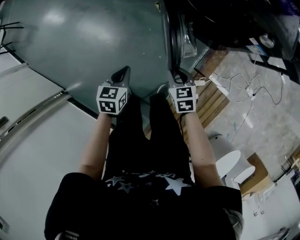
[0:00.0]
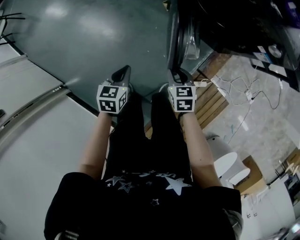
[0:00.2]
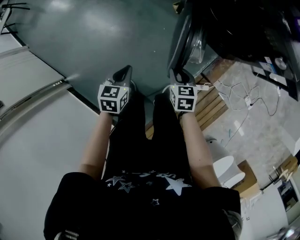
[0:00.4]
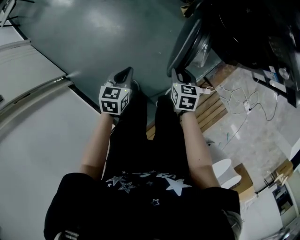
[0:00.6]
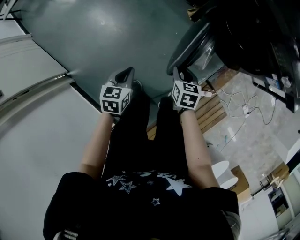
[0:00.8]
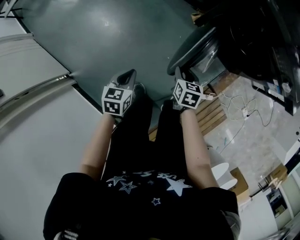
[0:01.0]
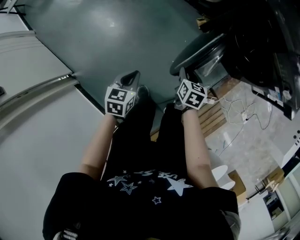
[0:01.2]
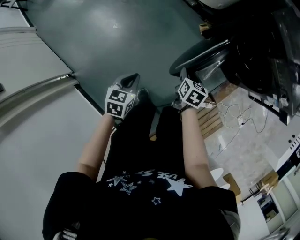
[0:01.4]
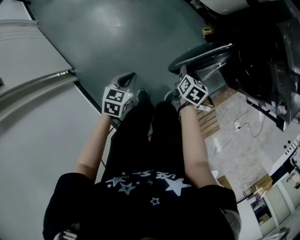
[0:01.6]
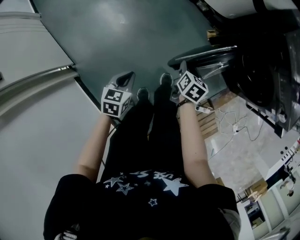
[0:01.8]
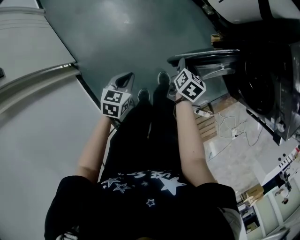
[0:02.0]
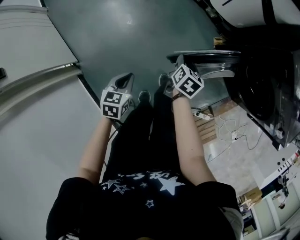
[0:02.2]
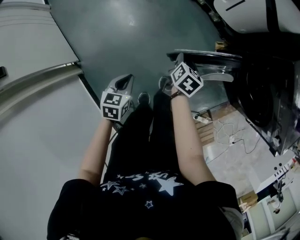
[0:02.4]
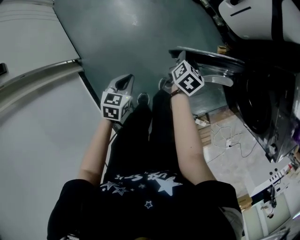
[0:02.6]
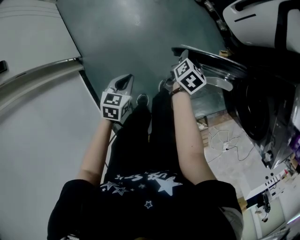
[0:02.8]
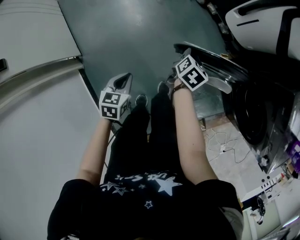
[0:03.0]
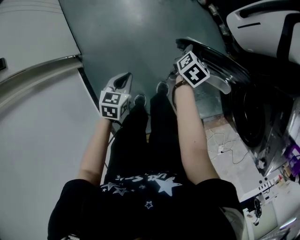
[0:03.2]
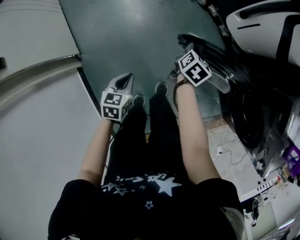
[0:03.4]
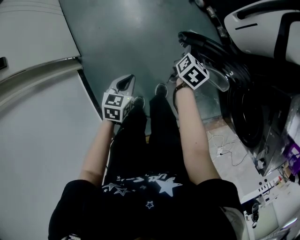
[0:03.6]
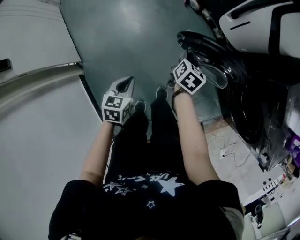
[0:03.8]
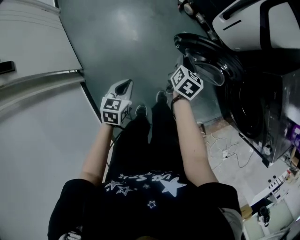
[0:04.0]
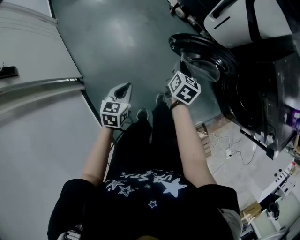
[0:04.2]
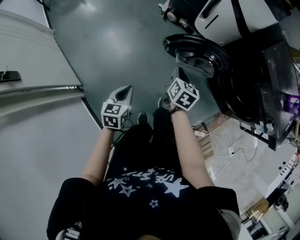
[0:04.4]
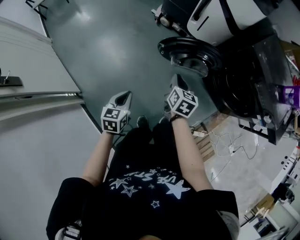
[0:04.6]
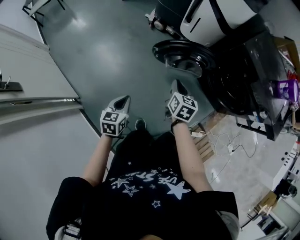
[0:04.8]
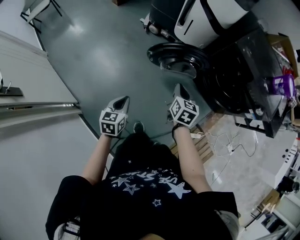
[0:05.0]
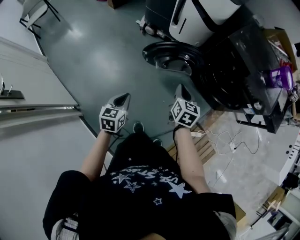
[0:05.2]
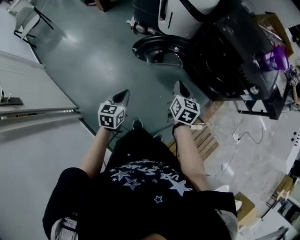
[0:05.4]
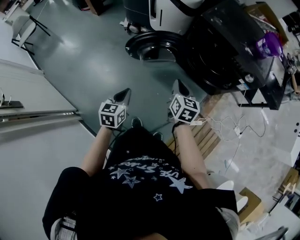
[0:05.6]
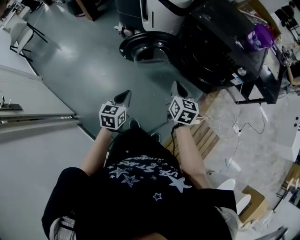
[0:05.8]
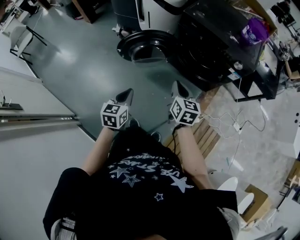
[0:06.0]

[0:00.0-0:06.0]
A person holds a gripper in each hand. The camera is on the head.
0:00.0 to 0:01.6: Both grippers move to the left, roughly 30 cm. The right gripper turns by some 20 degrees.
0:01.6 to 0:03.0: The right gripper shifts roughly 25 cm forward and to the left. The left gripper travels to the left and forward by some 10 cm, and swivels roughly 20 degrees.
0:03.0 to 0:04.4: The left gripper goes approximately 10 cm upward. The right gripper travels upward and backward by some 20 cm.
0:04.4 to 0:06.0: The right gripper goes about 35 cm to the right, backward and upward. Meanwhile the left gripper is displaced to the right and upward by roughly 30 cm, and swivels about 20 degrees.

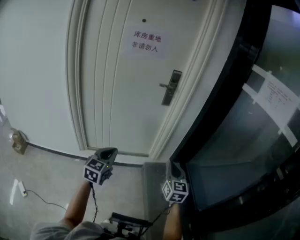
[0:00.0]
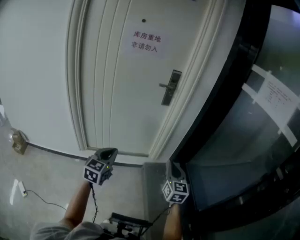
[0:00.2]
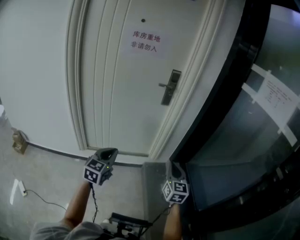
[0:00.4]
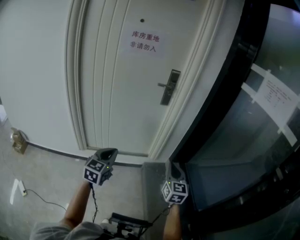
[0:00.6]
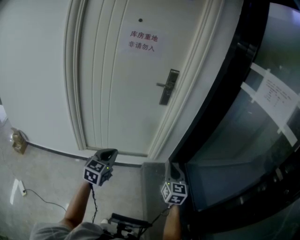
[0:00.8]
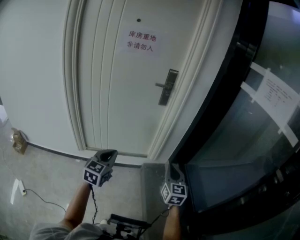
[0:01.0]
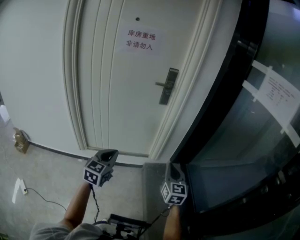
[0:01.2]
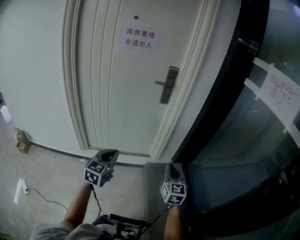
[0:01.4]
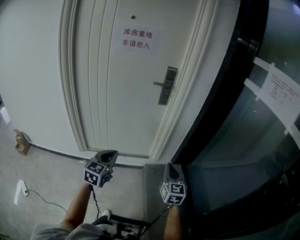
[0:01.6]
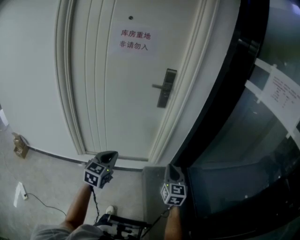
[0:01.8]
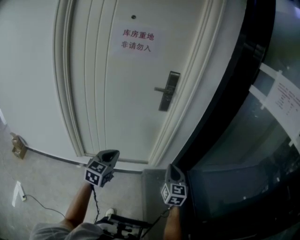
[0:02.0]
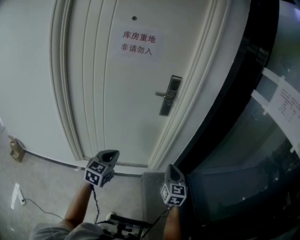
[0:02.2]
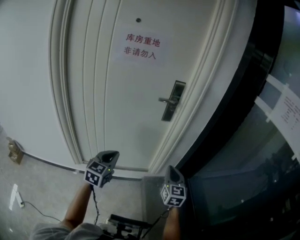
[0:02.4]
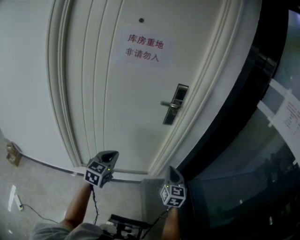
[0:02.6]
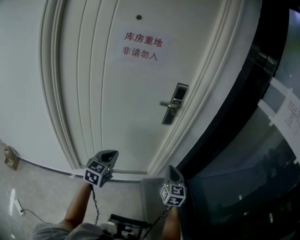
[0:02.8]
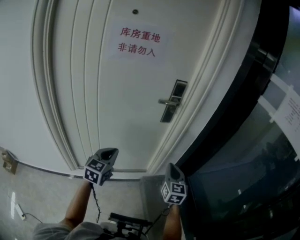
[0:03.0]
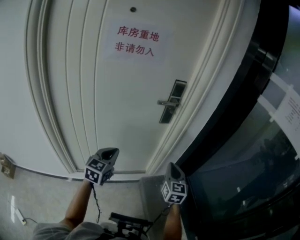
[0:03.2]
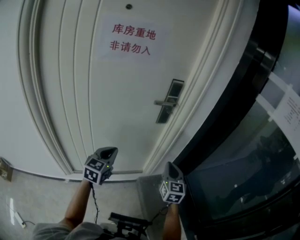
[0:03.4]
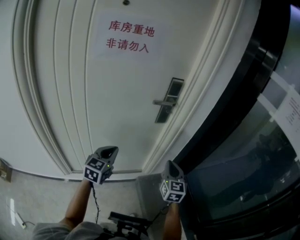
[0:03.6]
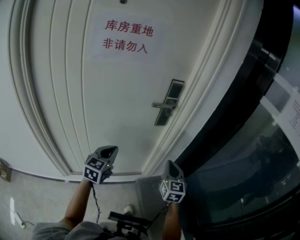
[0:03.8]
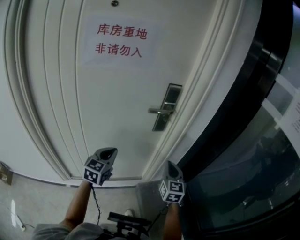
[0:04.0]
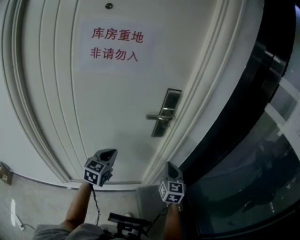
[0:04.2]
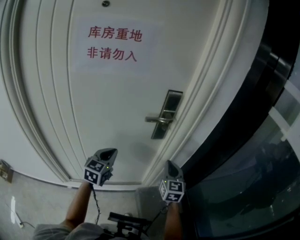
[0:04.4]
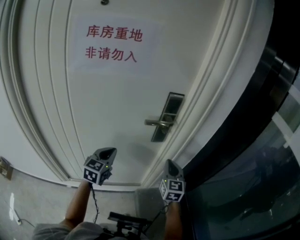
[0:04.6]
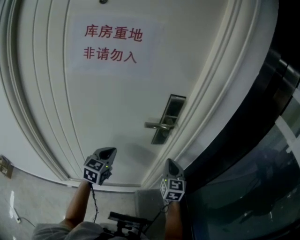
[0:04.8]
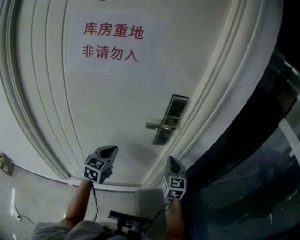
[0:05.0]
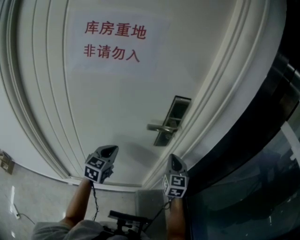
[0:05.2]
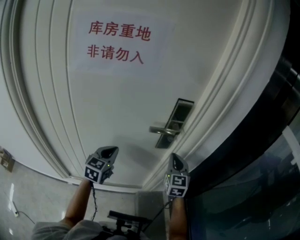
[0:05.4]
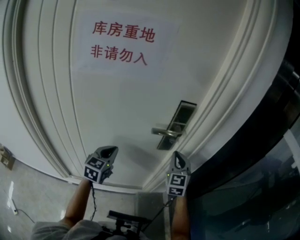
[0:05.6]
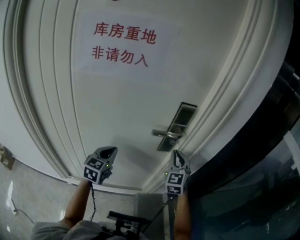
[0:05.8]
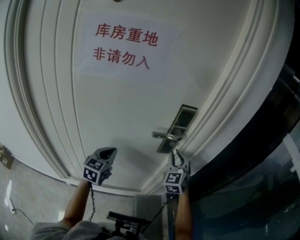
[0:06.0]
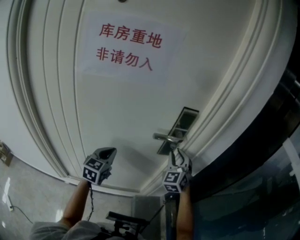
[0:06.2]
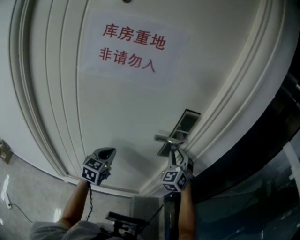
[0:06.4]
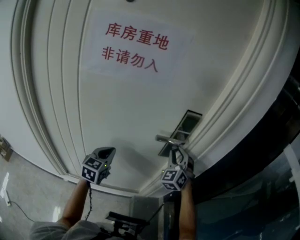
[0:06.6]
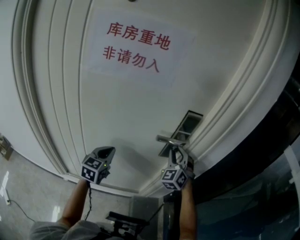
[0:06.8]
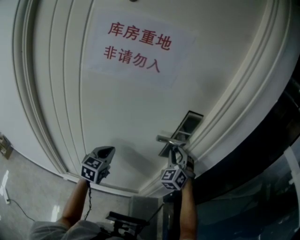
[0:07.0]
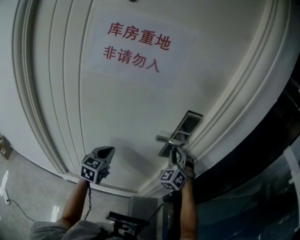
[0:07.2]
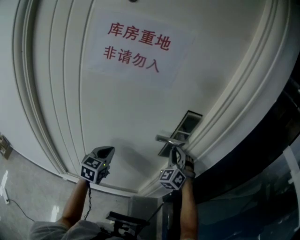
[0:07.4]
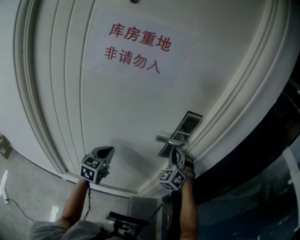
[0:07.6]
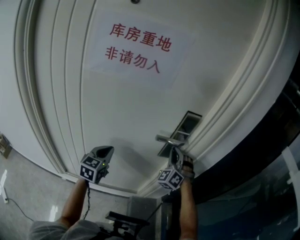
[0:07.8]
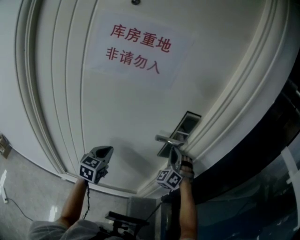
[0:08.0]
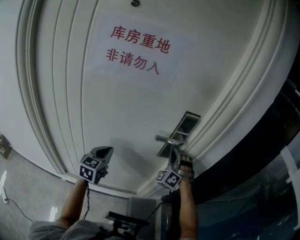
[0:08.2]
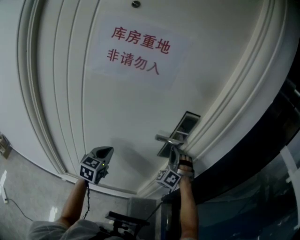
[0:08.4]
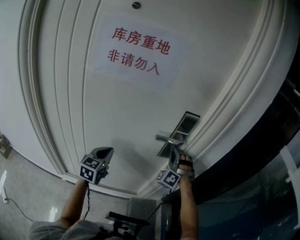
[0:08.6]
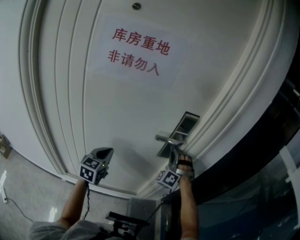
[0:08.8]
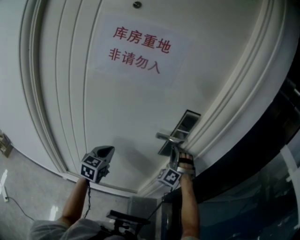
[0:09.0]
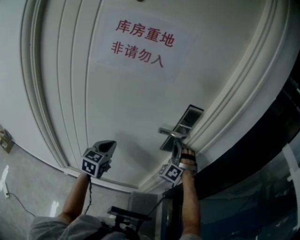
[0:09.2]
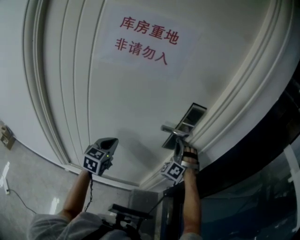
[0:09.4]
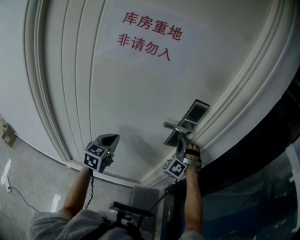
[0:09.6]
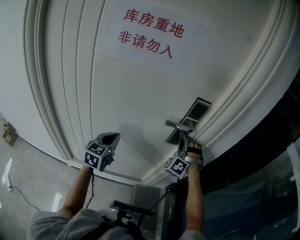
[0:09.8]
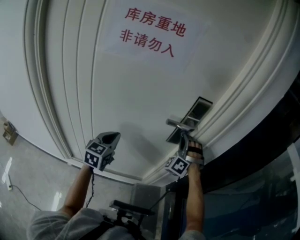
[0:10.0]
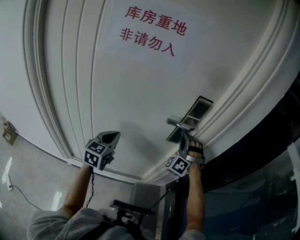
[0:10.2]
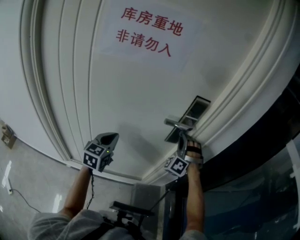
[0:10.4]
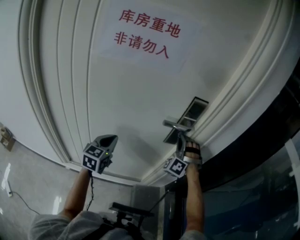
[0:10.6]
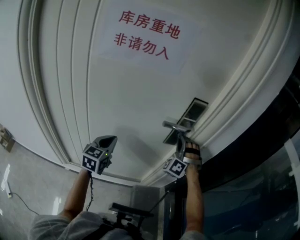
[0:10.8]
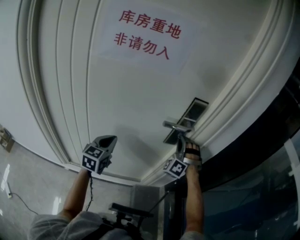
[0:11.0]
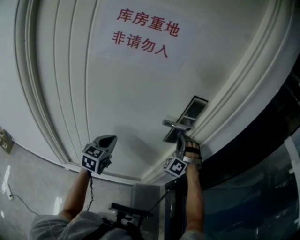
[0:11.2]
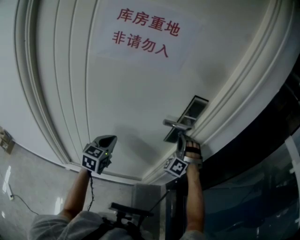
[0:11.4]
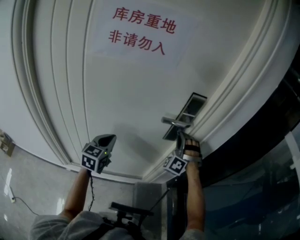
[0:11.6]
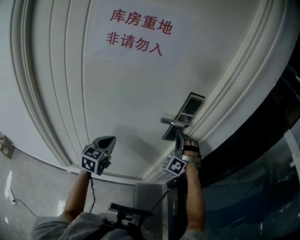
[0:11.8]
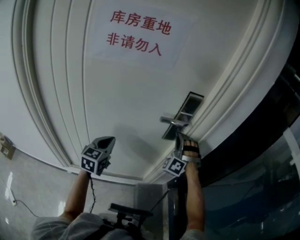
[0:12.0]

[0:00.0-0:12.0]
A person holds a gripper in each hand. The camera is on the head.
0:00.0 to 0:01.6: The left gripper heads to the right, covering approximately 5 cm. Meanwhile the right gripper ends up about 5 cm from where it was.
0:01.6 to 0:03.0: Both grippers travel together forward and to the left, about 25 cm.
0:03.0 to 0:04.4: Both grippers move forward, about 20 cm.
0:04.4 to 0:06.0: The right gripper heads forward and upward, covering roughly 15 cm, and rotates about 30 degrees; the left gripper is displaced forward by roughly 5 cm.
0:06.0 to 0:07.6: The right gripper turns by about 30 degrees.
0:07.6 to 0:09.0: The right gripper rotates about 20 degrees.
0:09.0 to 0:10.4: Neither gripper changes place.
0:10.4 to 0:12.0: The grippers stay close to where they were, moving slightly.

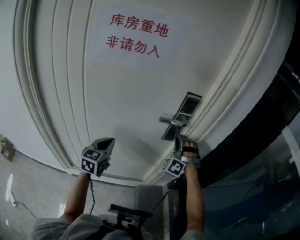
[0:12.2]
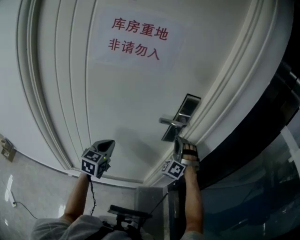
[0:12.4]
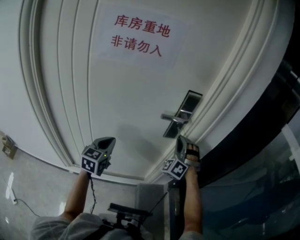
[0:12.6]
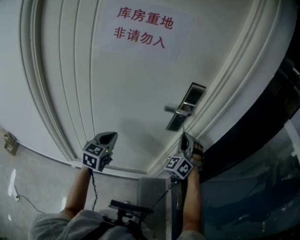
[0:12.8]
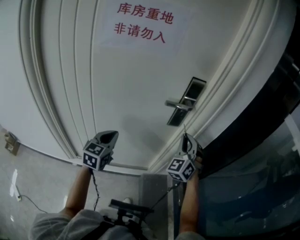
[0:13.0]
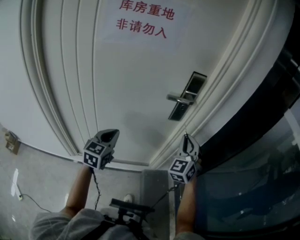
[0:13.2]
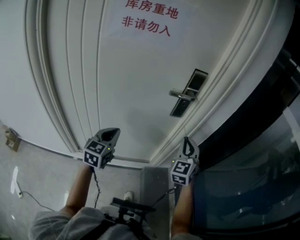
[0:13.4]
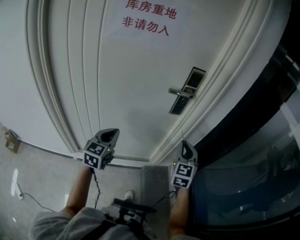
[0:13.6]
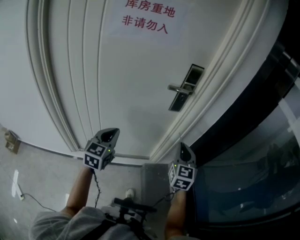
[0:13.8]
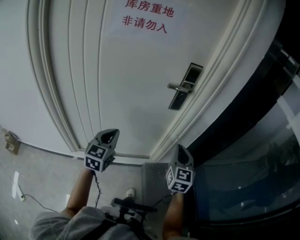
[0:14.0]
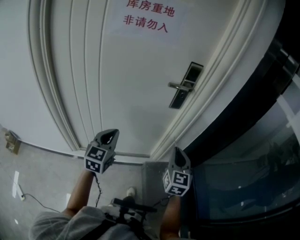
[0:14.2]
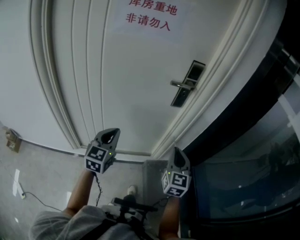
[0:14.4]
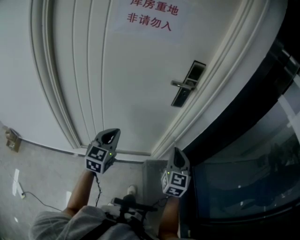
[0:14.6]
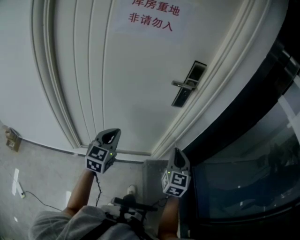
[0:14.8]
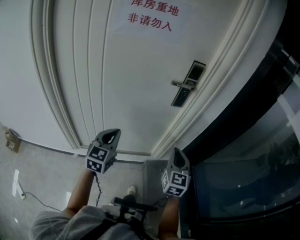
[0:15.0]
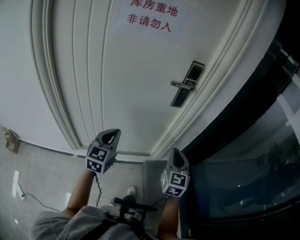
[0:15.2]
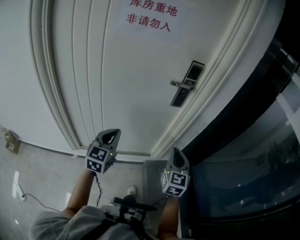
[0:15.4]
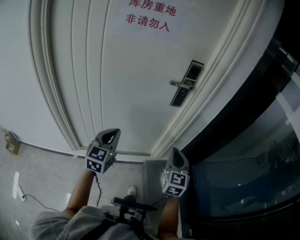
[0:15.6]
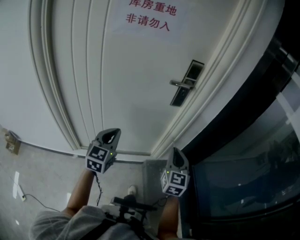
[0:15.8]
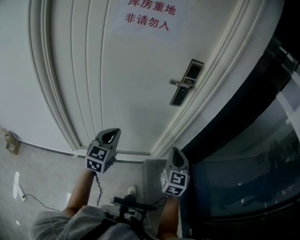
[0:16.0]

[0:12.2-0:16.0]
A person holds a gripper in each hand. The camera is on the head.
0:12.2 to 0:13.4: The right gripper is displaced backward by roughly 15 cm, and twists about 60 degrees clockwise, seen from behind; the left gripper shifts some 10 cm backward.
0:13.4 to 0:14.8: The right gripper heads backward and downward, covering about 15 cm, and rotates roughly 20 degrees. The left gripper travels backward by about 5 cm.
0:14.8 to 0:16.0: Both grippers stay put.

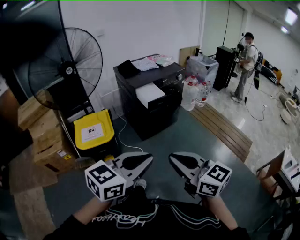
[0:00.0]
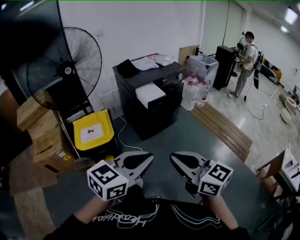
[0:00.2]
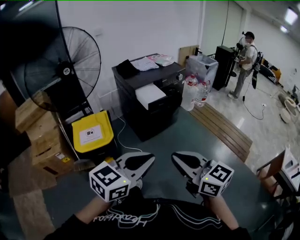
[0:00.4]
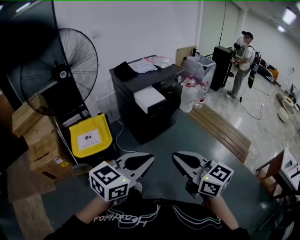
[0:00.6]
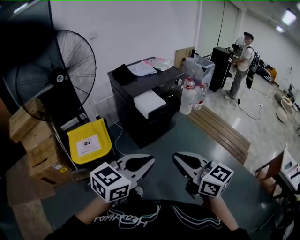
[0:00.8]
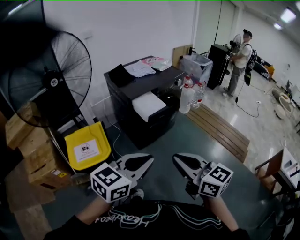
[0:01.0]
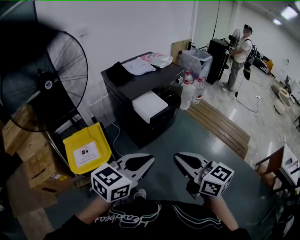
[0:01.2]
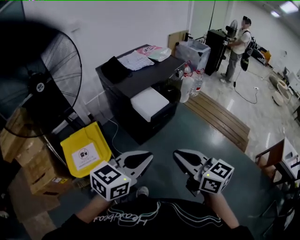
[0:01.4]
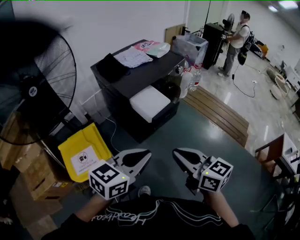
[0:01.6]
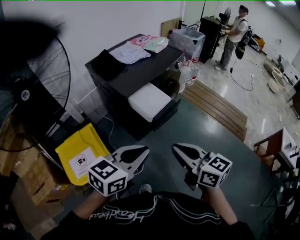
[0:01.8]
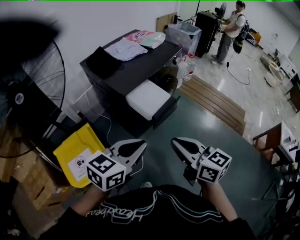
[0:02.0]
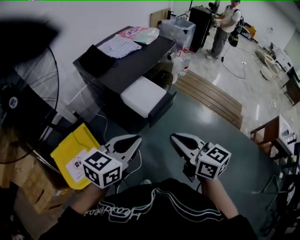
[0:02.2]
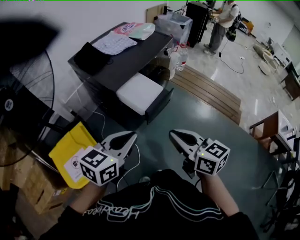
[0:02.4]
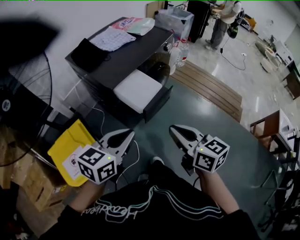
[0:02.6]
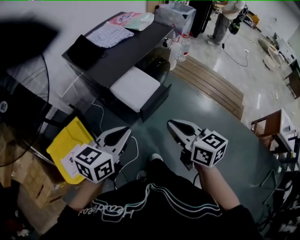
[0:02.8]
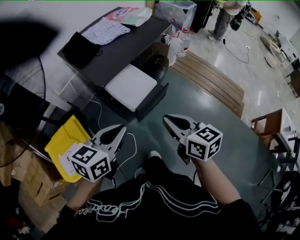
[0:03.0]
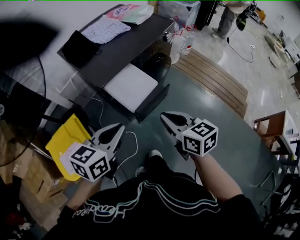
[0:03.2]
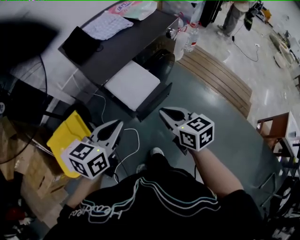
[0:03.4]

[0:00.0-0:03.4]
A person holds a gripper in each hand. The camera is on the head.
0:00.0 to 0:01.6: Both grippers move forward, approximately 30 cm.
0:01.6 to 0:03.4: Both grippers travel together forward and downward, about 25 cm.
